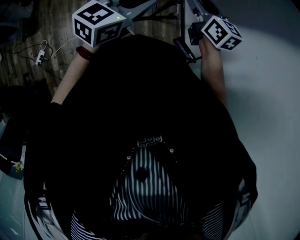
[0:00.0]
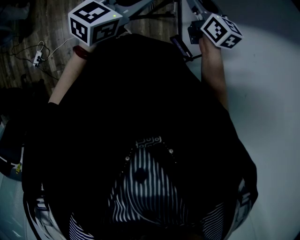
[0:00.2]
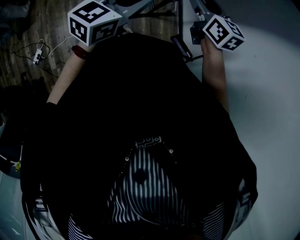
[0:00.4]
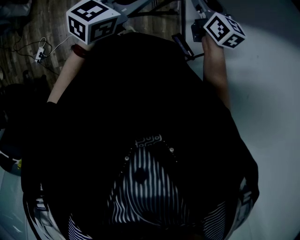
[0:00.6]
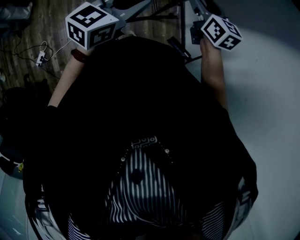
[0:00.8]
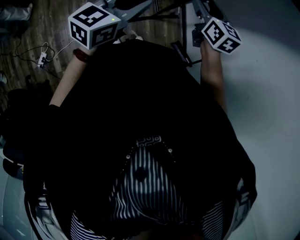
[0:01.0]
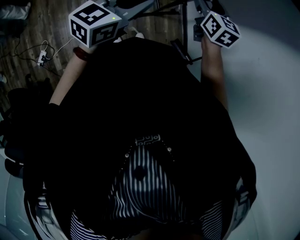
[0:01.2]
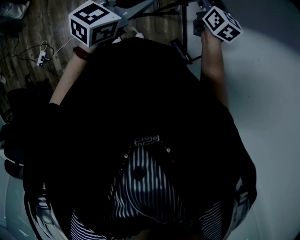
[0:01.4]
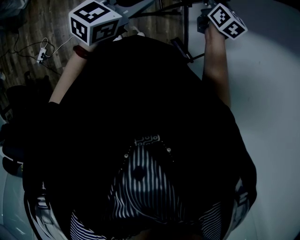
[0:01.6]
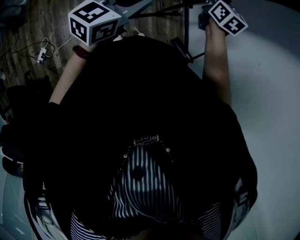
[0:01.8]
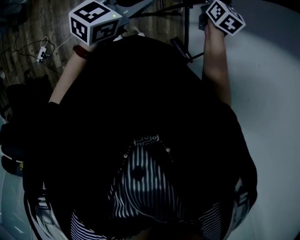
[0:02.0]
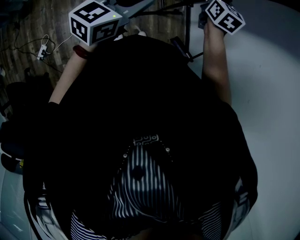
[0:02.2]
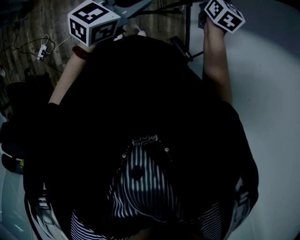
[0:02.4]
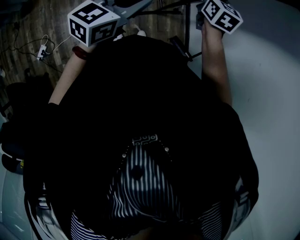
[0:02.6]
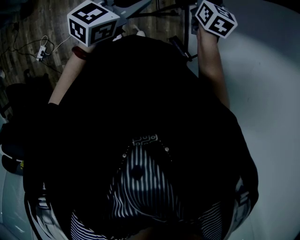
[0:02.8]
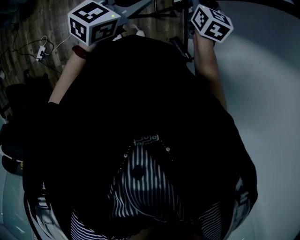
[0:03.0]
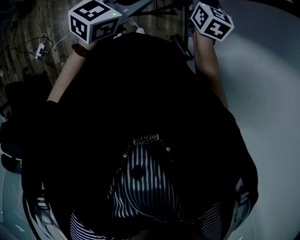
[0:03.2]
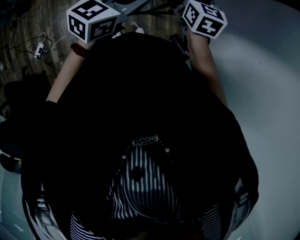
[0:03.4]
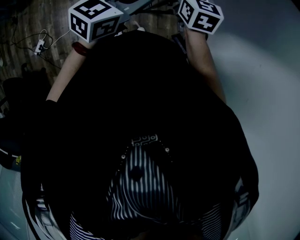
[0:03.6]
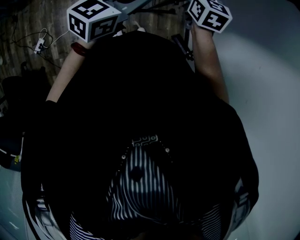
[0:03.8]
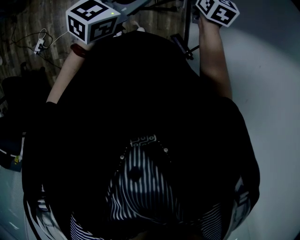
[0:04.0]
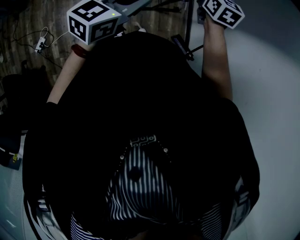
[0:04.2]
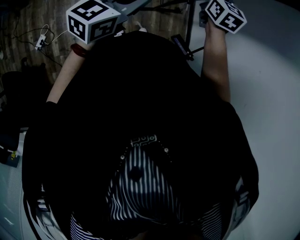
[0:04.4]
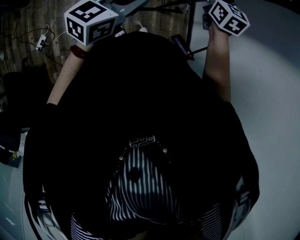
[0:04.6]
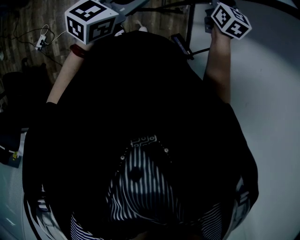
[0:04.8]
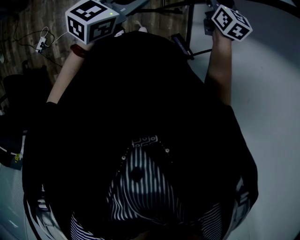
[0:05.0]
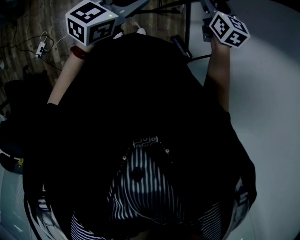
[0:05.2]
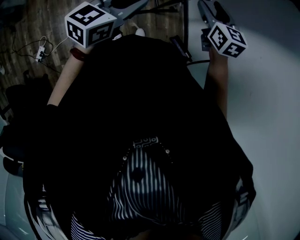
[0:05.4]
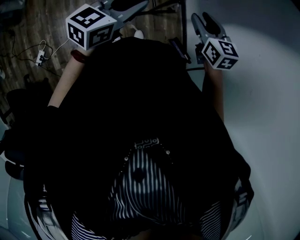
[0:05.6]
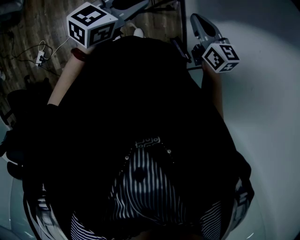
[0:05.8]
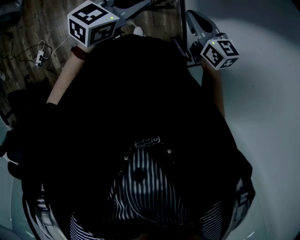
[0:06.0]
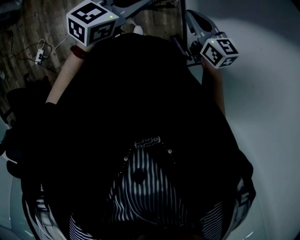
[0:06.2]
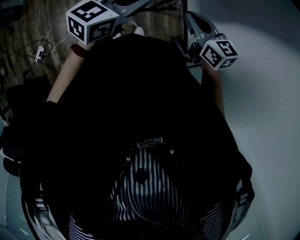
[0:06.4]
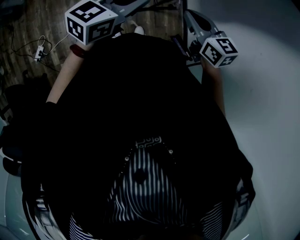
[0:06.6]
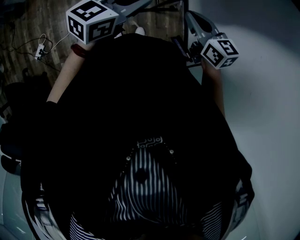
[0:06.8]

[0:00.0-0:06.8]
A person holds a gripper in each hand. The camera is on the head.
0:00.0 to 0:01.4: The right gripper moves some 5 cm.
0:01.4 to 0:02.8: The right gripper closes its fingers.
0:04.0 to 0:05.4: The right gripper goes approximately 10 cm to the right and backward.
0:05.4 to 0:06.8: The right gripper moves backward, roughly 10 cm, rotates roughly 20 degrees, and closes its fingers.

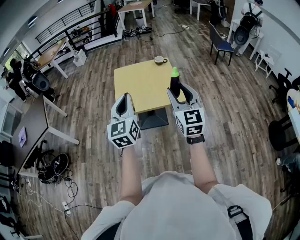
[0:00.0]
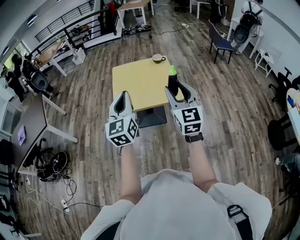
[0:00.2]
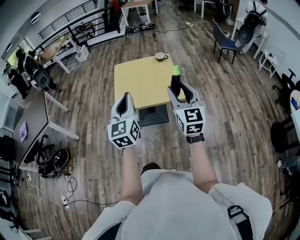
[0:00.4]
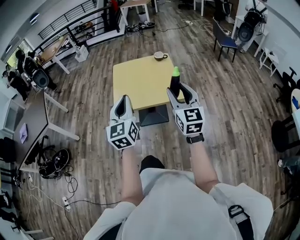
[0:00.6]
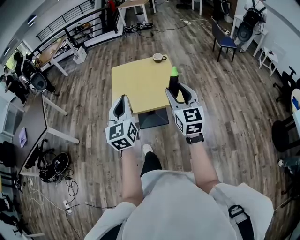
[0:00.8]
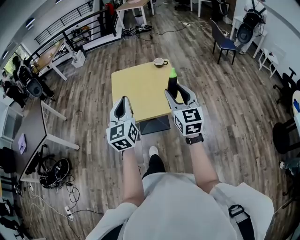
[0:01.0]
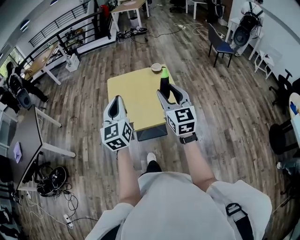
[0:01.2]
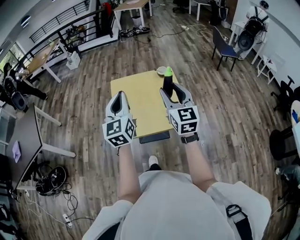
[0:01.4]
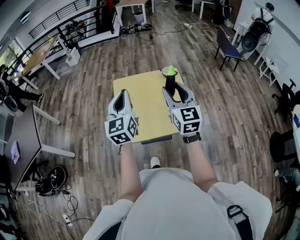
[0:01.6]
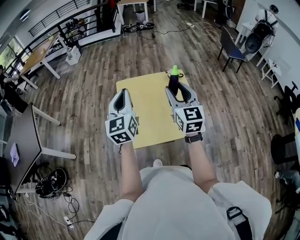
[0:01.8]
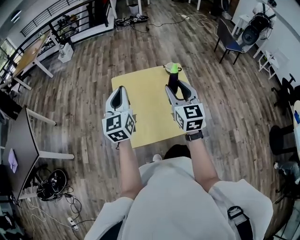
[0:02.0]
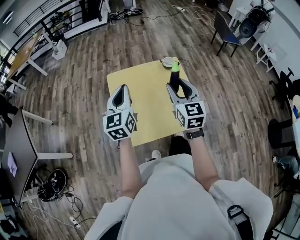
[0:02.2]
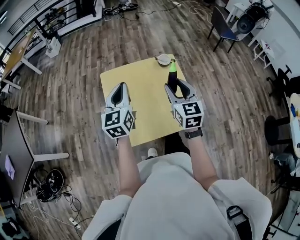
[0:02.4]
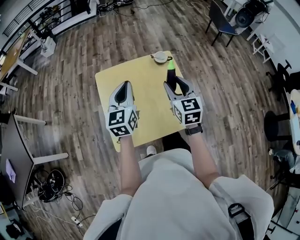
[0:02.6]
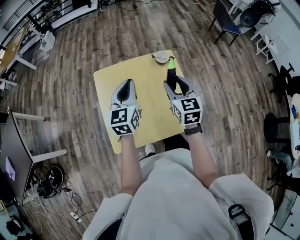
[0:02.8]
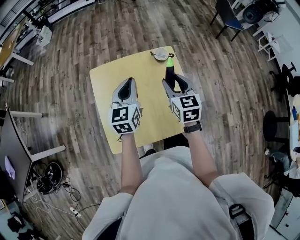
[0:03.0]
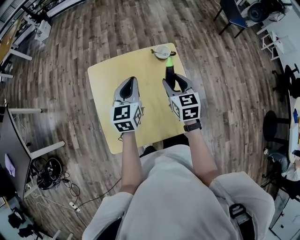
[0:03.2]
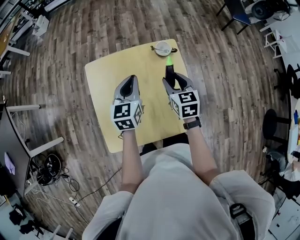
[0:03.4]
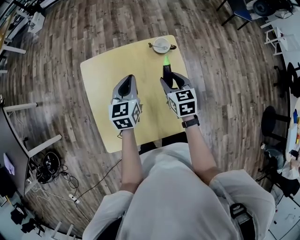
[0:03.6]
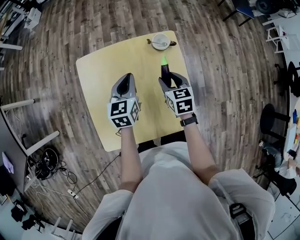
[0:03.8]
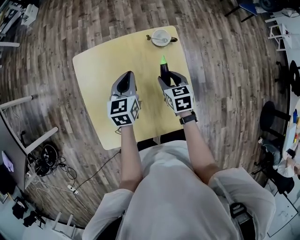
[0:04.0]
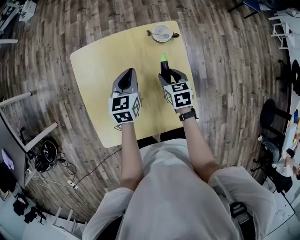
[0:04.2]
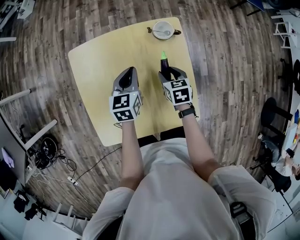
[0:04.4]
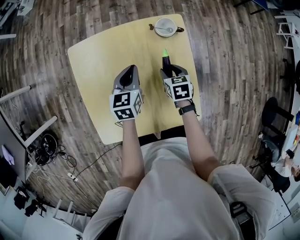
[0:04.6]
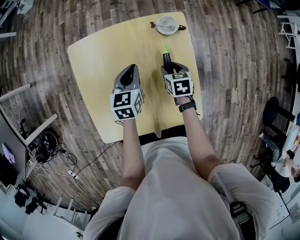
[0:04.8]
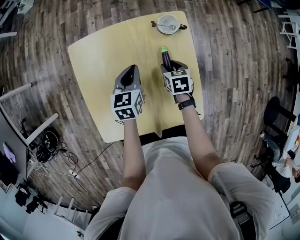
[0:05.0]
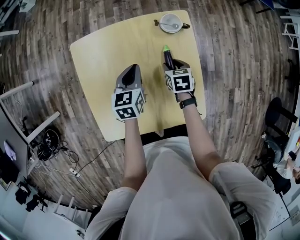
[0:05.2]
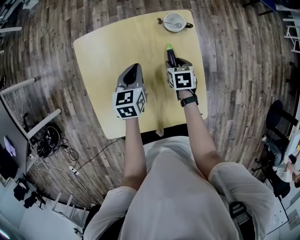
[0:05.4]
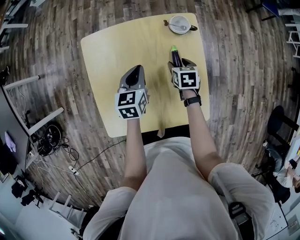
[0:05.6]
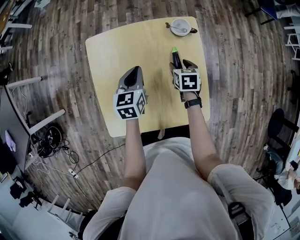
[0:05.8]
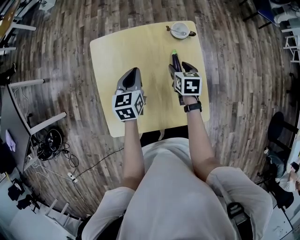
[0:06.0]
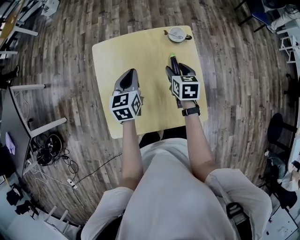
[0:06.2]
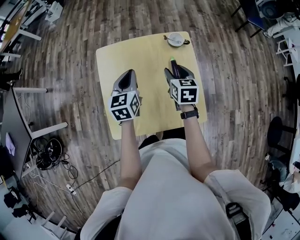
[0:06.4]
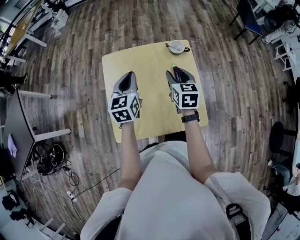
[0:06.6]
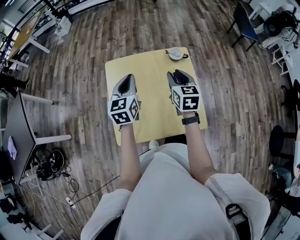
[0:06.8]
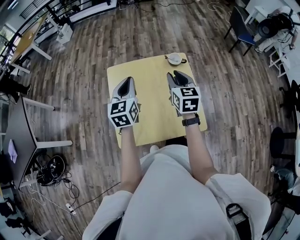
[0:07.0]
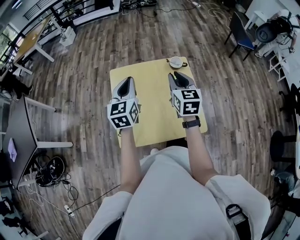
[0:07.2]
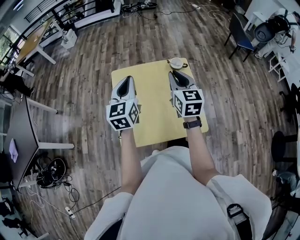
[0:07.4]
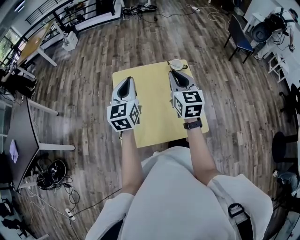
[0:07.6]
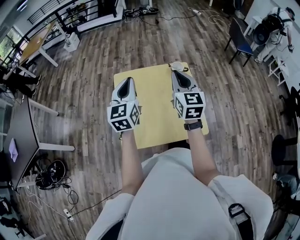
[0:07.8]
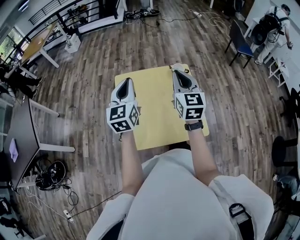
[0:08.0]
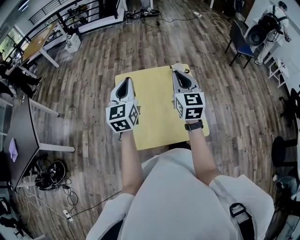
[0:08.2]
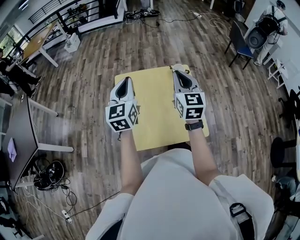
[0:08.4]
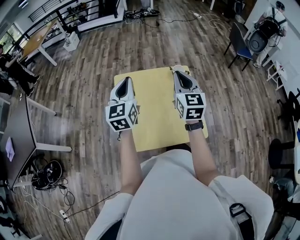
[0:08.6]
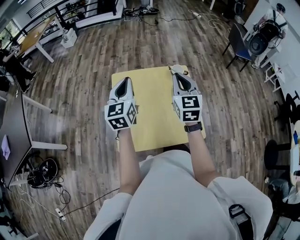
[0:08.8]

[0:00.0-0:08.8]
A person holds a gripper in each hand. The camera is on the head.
0:00.0 to 0:01.4: Both grippers travel together forward, approximately 25 cm.
0:01.4 to 0:03.0: Both grippers travel together forward and downward, roughly 30 cm. The right gripper changes its angle by roughly 20 degrees. The left gripper swivels roughly 20 degrees.
0:03.0 to 0:04.4: The right gripper moves downward, approximately 25 cm, and rotates some 30 degrees, while the left gripper heads downward and forward, covering about 20 cm, and turns by some 20 degrees.
0:04.4 to 0:05.8: The left gripper moves roughly 5 cm.
0:05.8 to 0:07.4: The two grippers go approximately 30 cm upward. The left gripper swivels some 30 degrees; the right gripper tips its fingers upward by about 40 degrees, and closes its fingers.
0:07.4 to 0:08.8: The grippers move only a little.

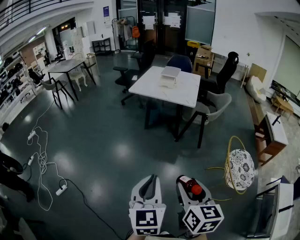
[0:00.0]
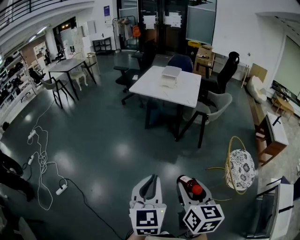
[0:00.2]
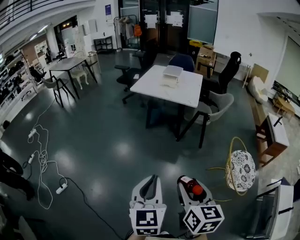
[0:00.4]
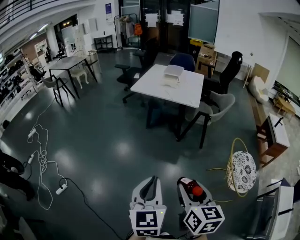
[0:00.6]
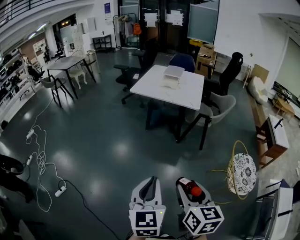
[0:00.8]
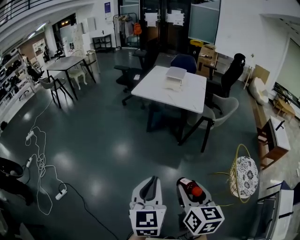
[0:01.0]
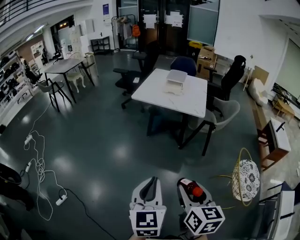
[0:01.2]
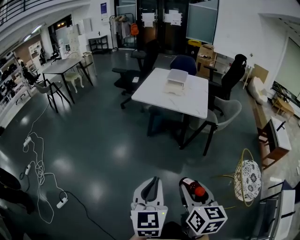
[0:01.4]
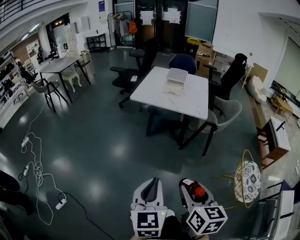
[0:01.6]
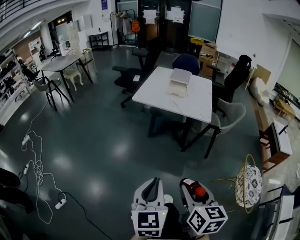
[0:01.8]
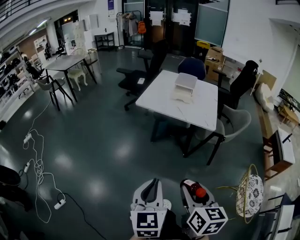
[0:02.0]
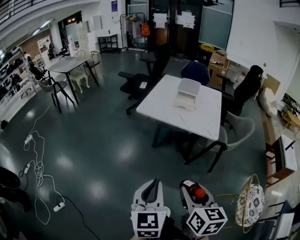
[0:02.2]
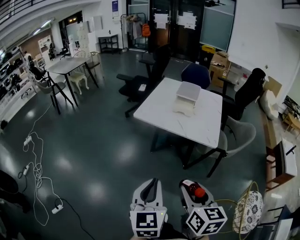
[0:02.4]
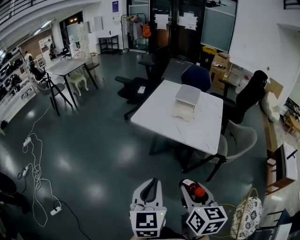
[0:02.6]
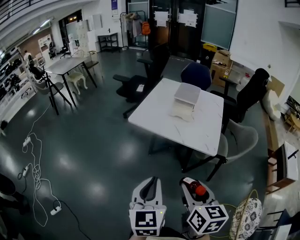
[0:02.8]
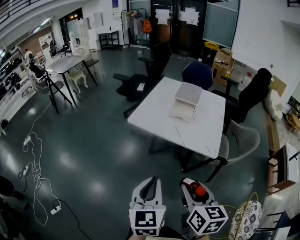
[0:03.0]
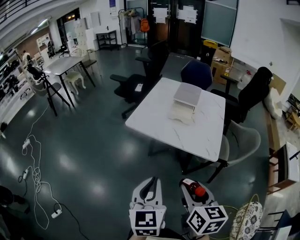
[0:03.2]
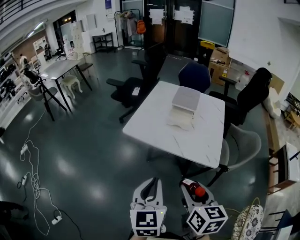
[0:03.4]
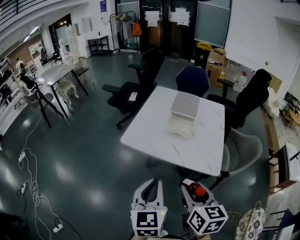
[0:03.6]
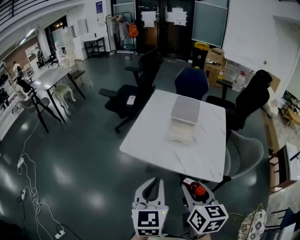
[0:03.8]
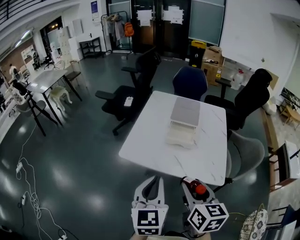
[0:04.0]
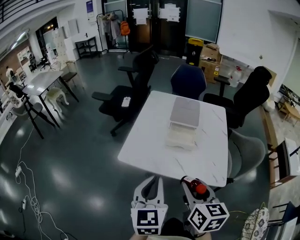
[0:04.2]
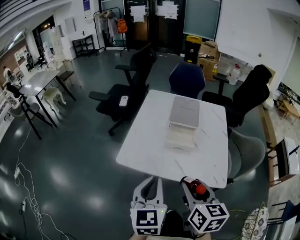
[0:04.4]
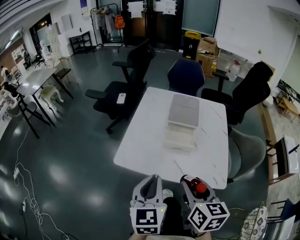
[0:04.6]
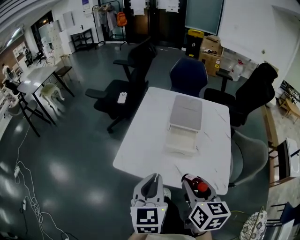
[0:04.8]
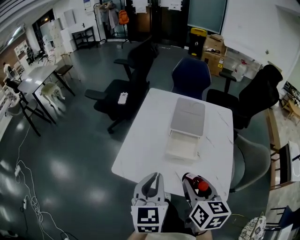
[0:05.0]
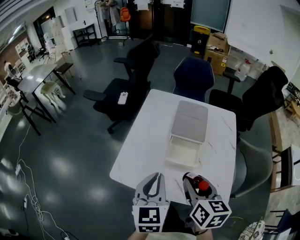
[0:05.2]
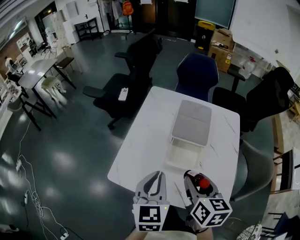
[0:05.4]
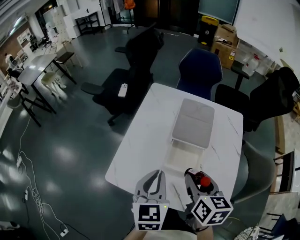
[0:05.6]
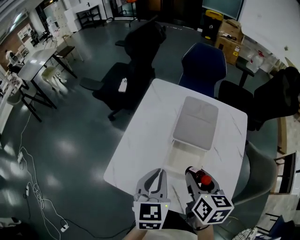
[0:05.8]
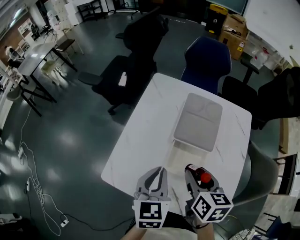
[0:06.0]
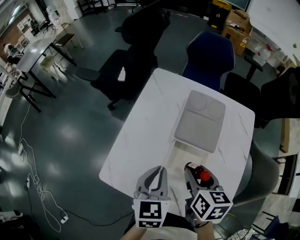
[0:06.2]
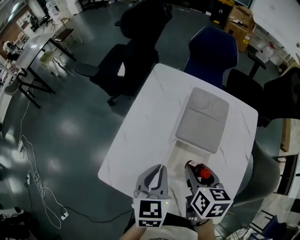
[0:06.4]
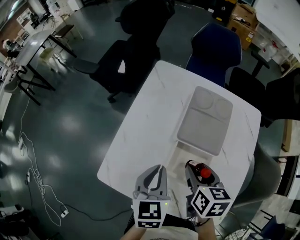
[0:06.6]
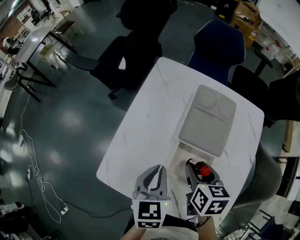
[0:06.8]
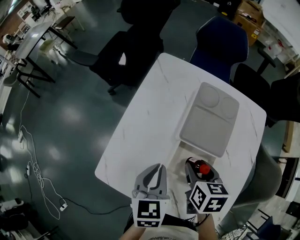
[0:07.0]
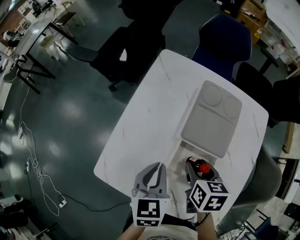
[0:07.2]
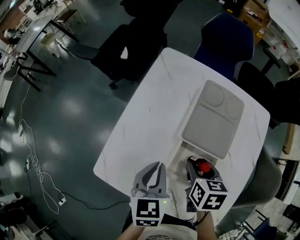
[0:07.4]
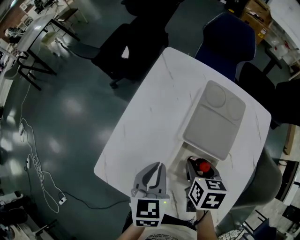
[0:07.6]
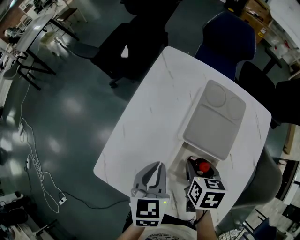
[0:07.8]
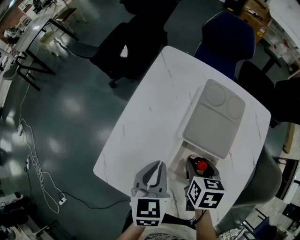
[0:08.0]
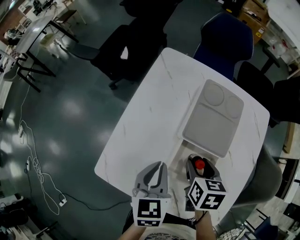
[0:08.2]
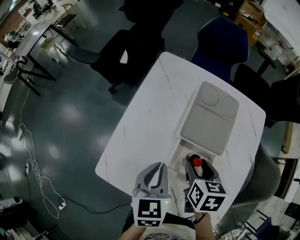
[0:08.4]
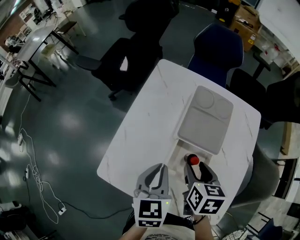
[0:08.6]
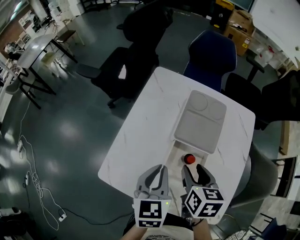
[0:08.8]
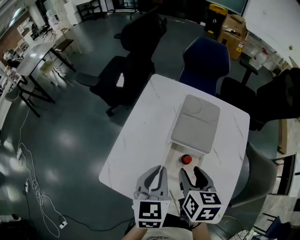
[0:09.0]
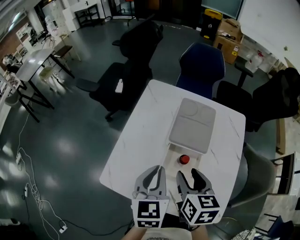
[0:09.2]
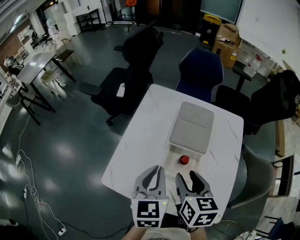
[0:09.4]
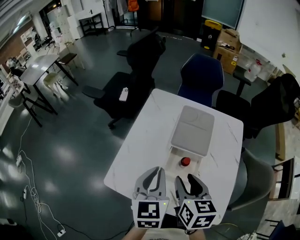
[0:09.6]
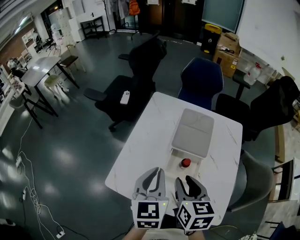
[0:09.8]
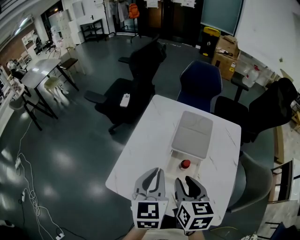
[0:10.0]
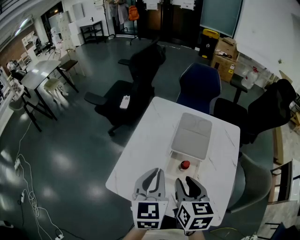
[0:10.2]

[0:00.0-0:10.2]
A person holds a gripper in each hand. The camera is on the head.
0:00.0 to 0:01.4: Both grippers travel together forward and to the left, approximately 15 cm.
0:01.4 to 0:03.0: Both grippers move forward, about 35 cm.
0:03.0 to 0:04.4: The grippers both shift forward by roughly 30 cm.
0:04.4 to 0:05.8: The two grippers go some 25 cm forward.
0:05.8 to 0:07.2: The grippers both shift downward and forward by some 10 cm.
0:07.2 to 0:08.8: The two grippers go roughly 5 cm upward.
0:08.8 to 0:10.2: The left gripper travels upward by approximately 10 cm, while the right gripper goes about 10 cm upward and backward.
